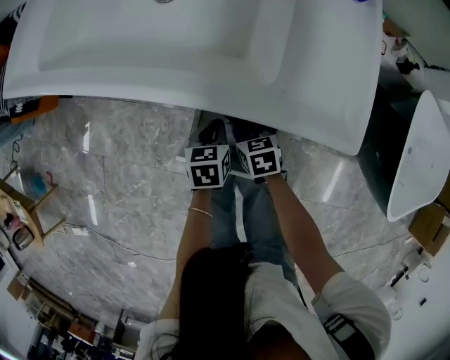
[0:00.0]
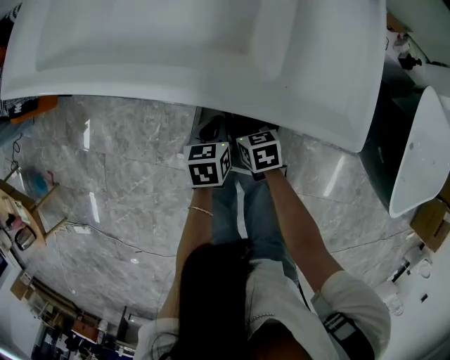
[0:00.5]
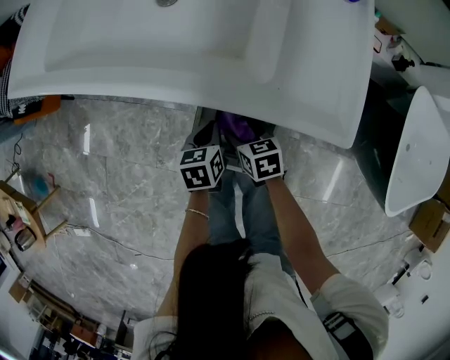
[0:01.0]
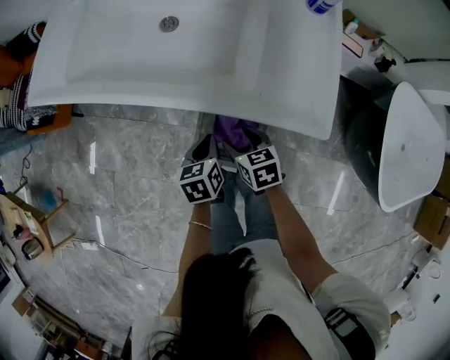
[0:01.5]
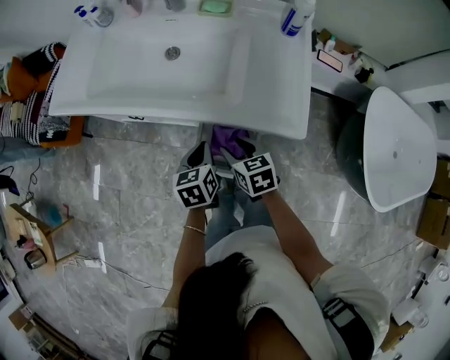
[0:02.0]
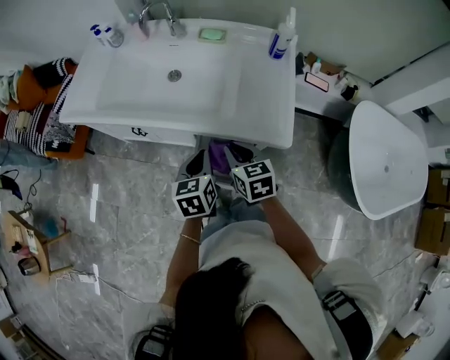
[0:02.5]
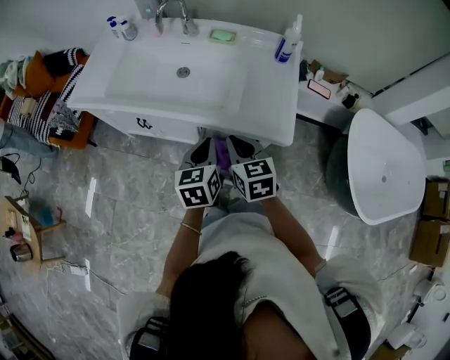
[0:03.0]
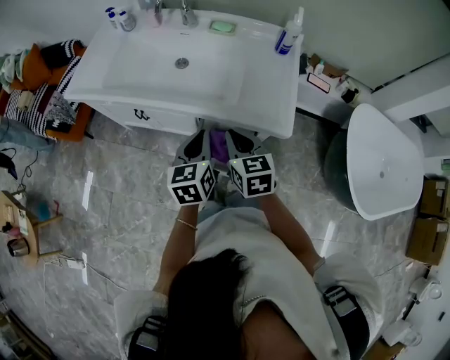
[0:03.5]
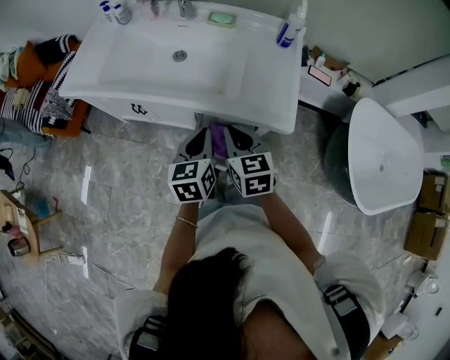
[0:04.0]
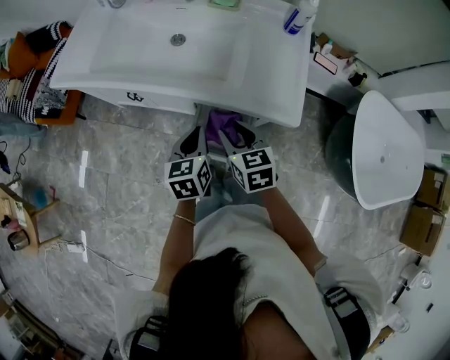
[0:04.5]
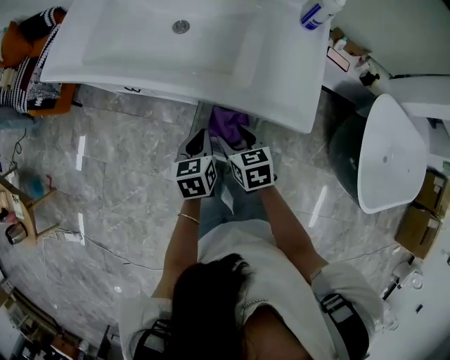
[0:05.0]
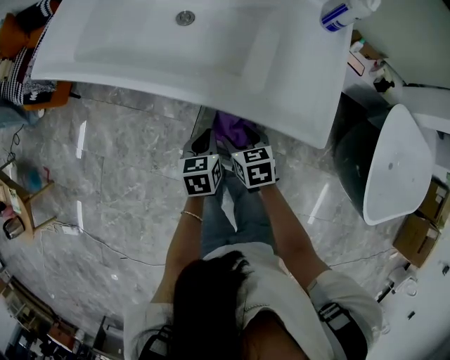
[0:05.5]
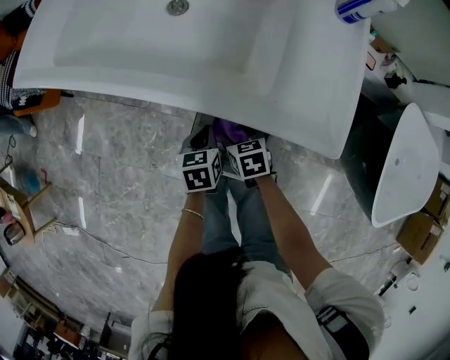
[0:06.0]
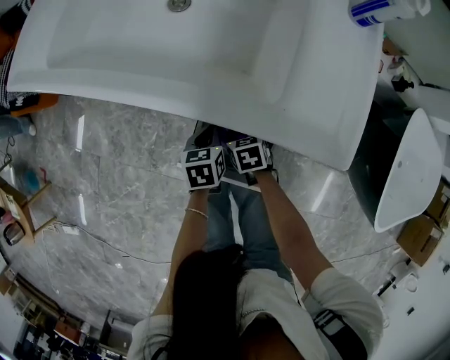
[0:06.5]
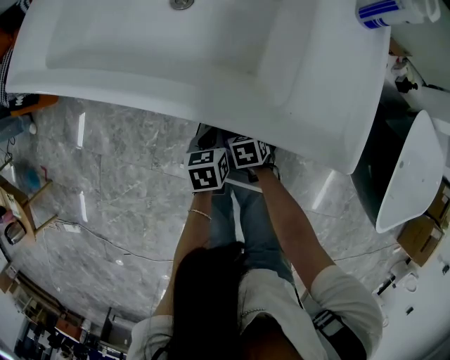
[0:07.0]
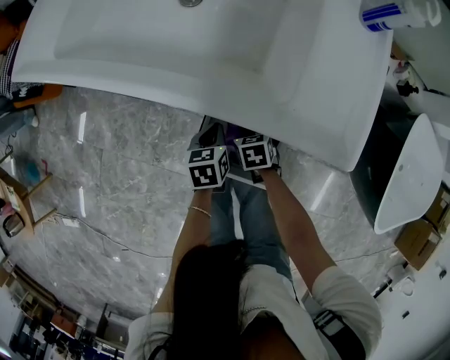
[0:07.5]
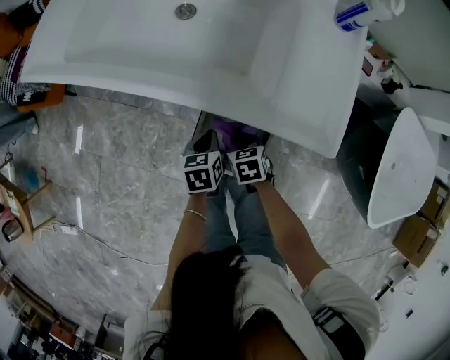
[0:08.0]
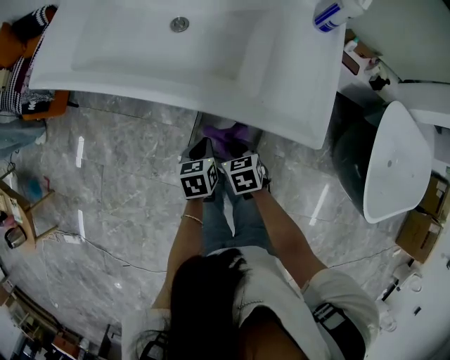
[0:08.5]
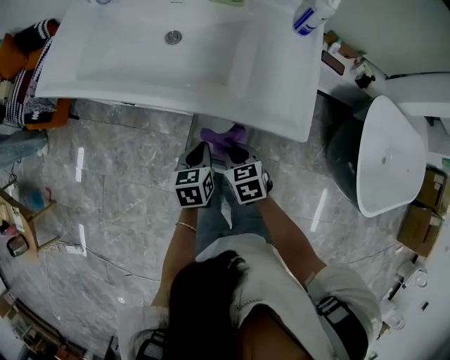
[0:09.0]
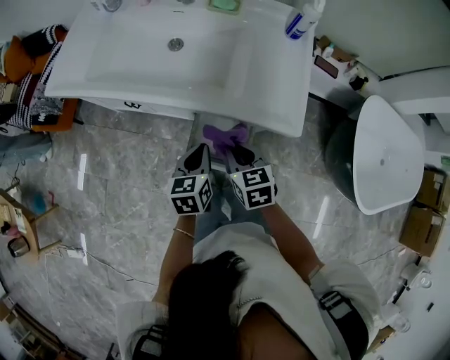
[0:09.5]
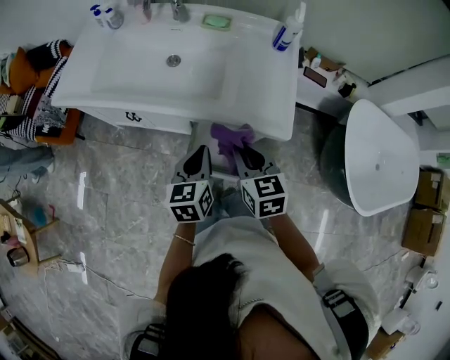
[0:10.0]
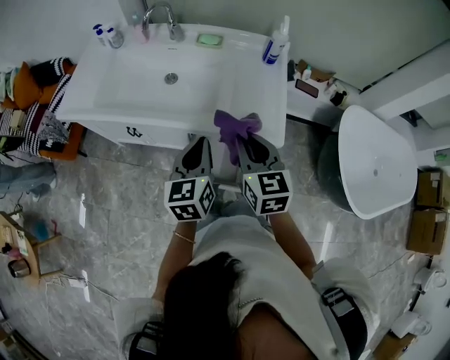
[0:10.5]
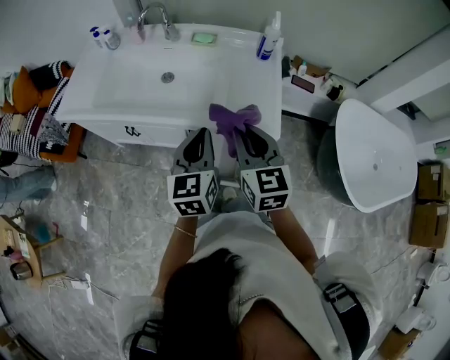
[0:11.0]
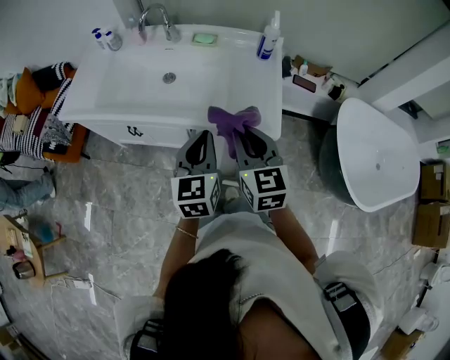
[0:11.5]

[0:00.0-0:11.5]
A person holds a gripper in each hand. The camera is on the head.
0:00.0 to 0:02.0: Both grippers travel together upward, some 20 cm. The right gripper opens up.
0:02.0 to 0:04.0: The grippers both shift upward by roughly 15 cm. The right gripper swivels approximately 20 degrees, and closes.
0:04.0 to 0:06.0: Both grippers travel together downward, some 30 cm. The right gripper rotates roughly 30 degrees, and opens up; the left gripper swivels roughly 30 degrees.
0:06.0 to 0:07.5: The right gripper shifts some 5 cm downward, and closes.
0:07.5 to 0:09.5: Both grippers travel together upward, roughly 25 cm. The right gripper swivels roughly 30 degrees.
0:09.5 to 0:11.5: Both grippers move upward, some 20 cm. The right gripper rotates approximately 30 degrees; the left gripper swivels about 30 degrees.

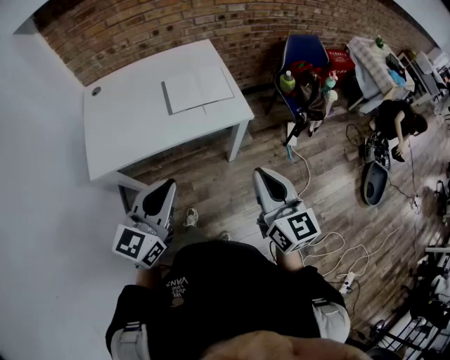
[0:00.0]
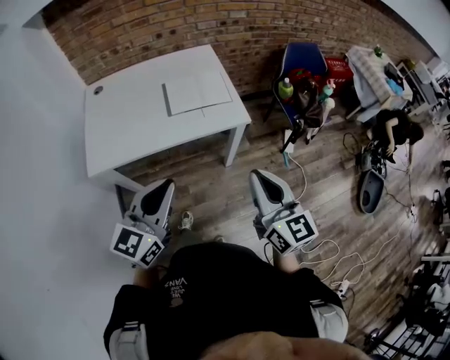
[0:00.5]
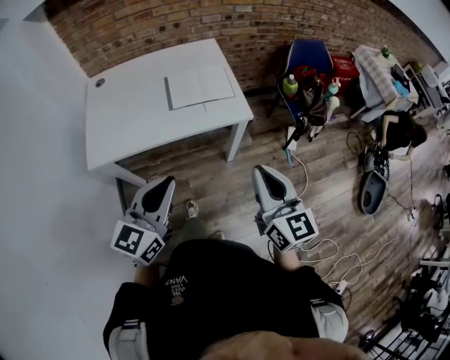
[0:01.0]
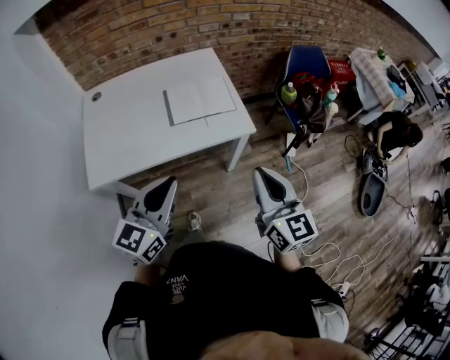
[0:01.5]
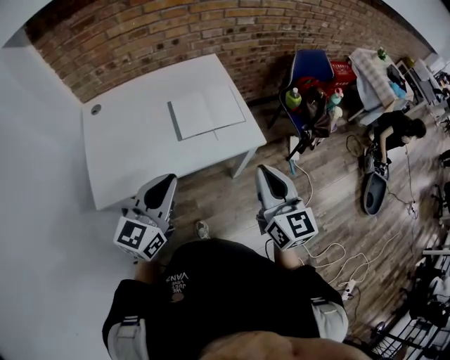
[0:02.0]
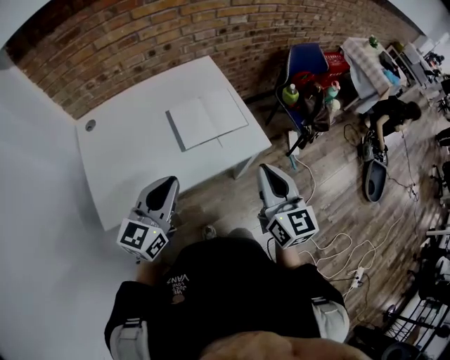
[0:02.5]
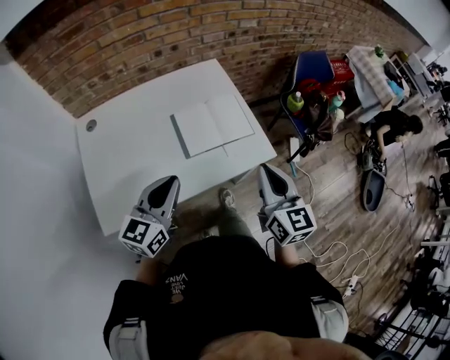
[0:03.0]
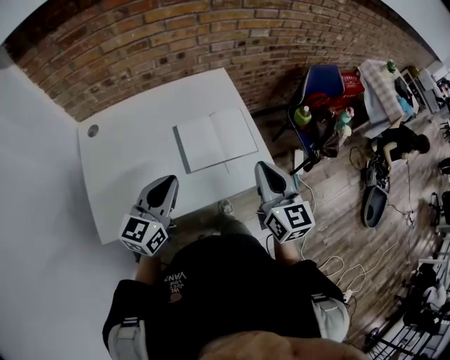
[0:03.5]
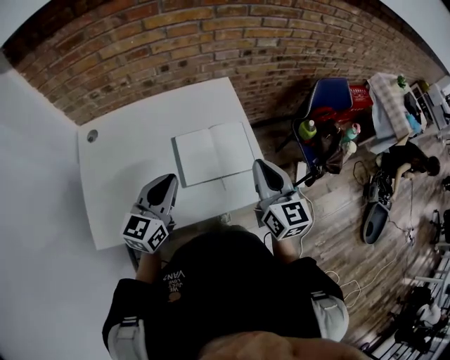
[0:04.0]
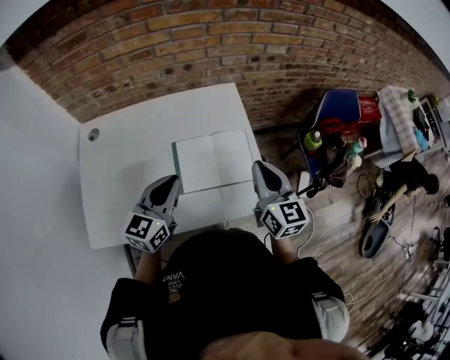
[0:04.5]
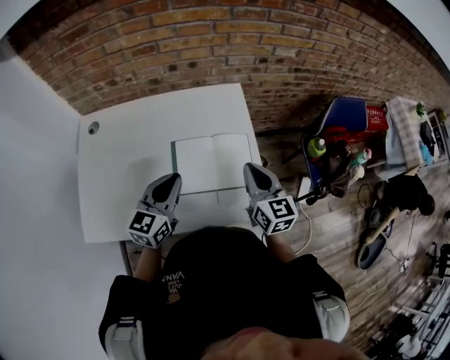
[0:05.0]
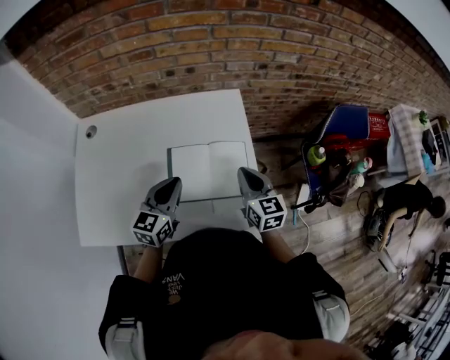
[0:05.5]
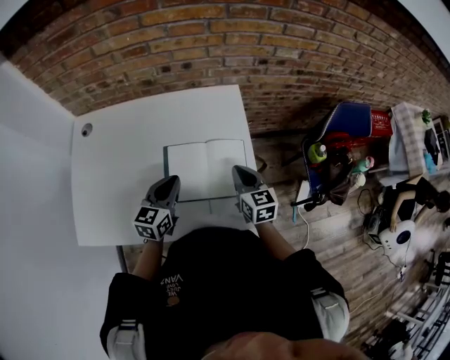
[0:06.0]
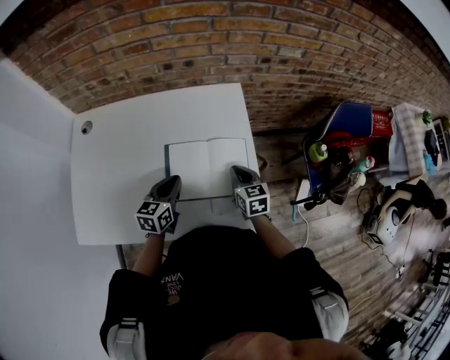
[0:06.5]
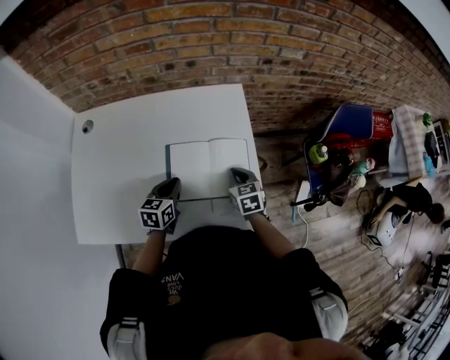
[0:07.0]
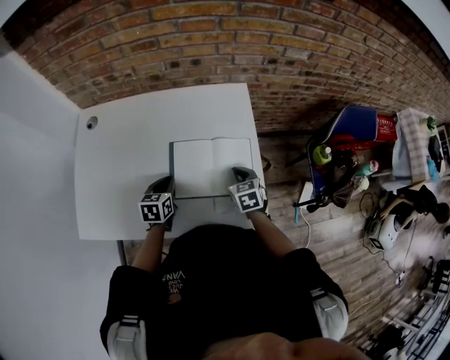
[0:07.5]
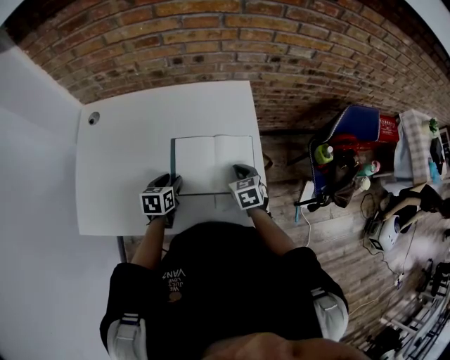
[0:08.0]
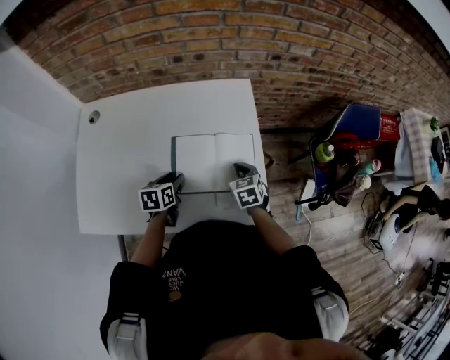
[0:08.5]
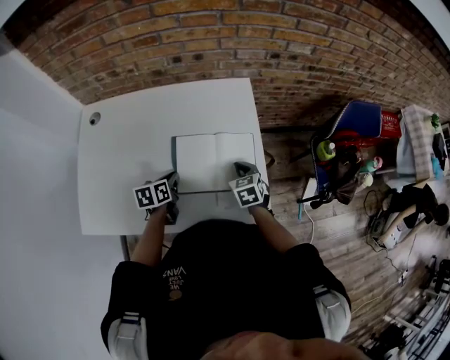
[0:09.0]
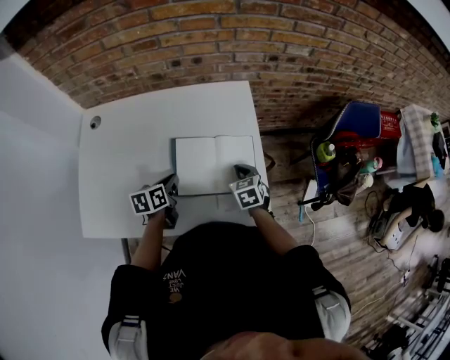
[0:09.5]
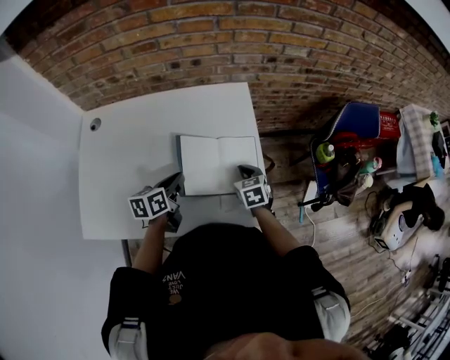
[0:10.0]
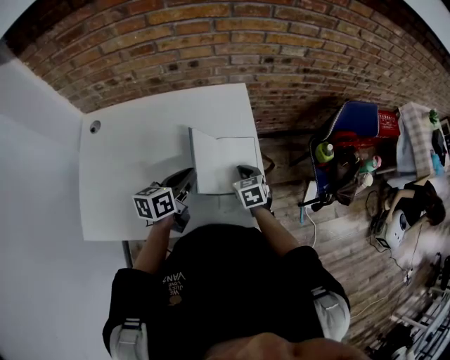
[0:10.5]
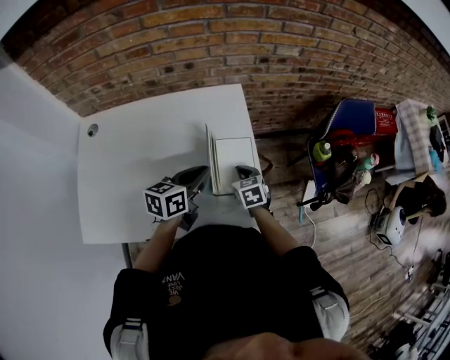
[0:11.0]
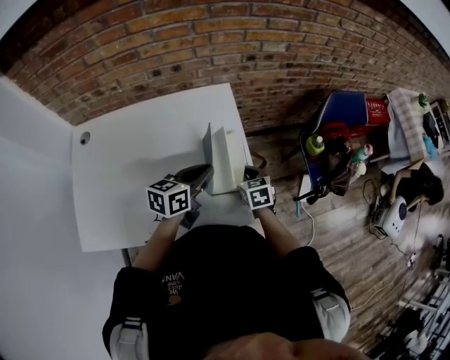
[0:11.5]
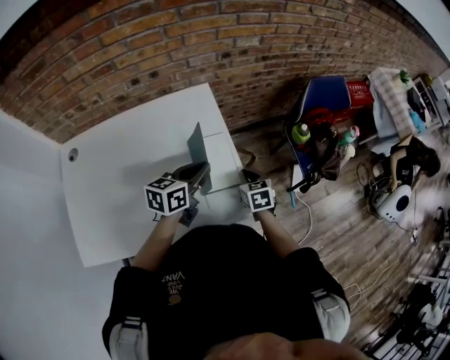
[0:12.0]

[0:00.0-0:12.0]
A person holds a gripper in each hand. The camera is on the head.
0:00.0 to 0:02.0: The grippers both shift forward and to the left by about 15 cm.
0:02.0 to 0:04.0: Both grippers move forward, approximately 25 cm.
0:04.0 to 0:06.0: Both grippers travel together downward and forward, roughly 20 cm. The right gripper swivels approximately 20 degrees.
0:06.0 to 0:08.0: Both grippers travel together downward, about 10 cm. The left gripper turns by approximately 30 degrees, and opens up. Meanwhile the right gripper swivels approximately 20 degrees.
0:08.0 to 0:10.0: The left gripper heads upward, covering roughly 5 cm, swivels some 20 degrees, and closes.
0:10.0 to 0:12.0: The right gripper travels to the right by about 10 cm. The left gripper heads to the right and upward, covering roughly 20 cm, and changes its angle by approximately 30 degrees.

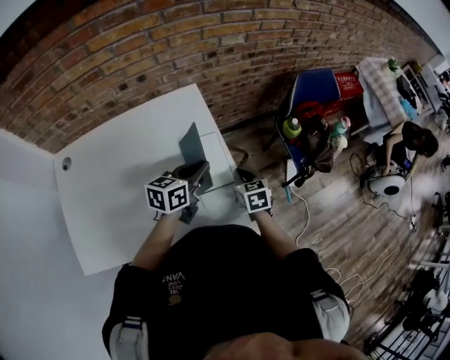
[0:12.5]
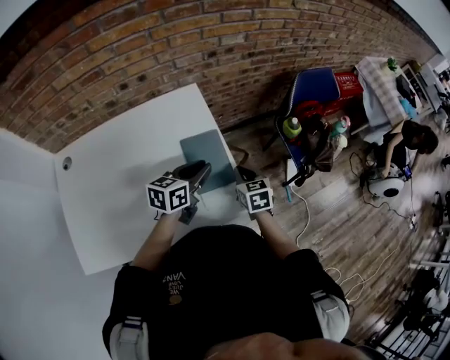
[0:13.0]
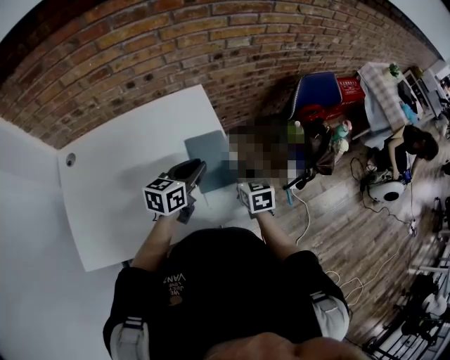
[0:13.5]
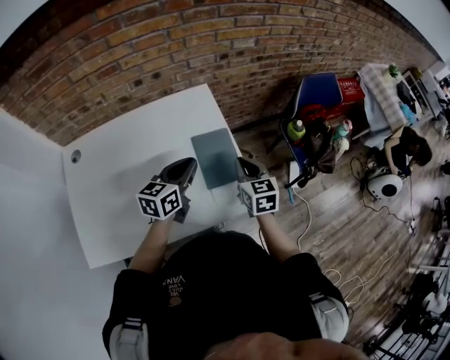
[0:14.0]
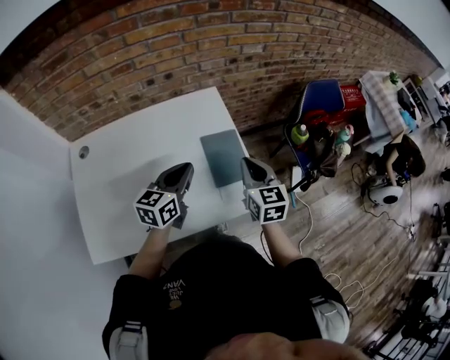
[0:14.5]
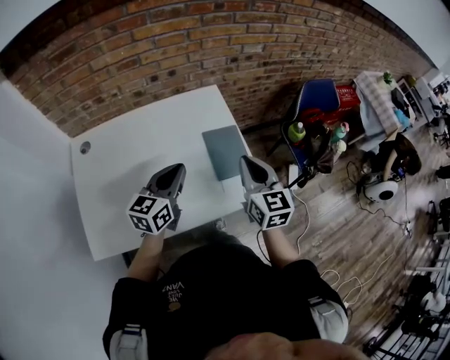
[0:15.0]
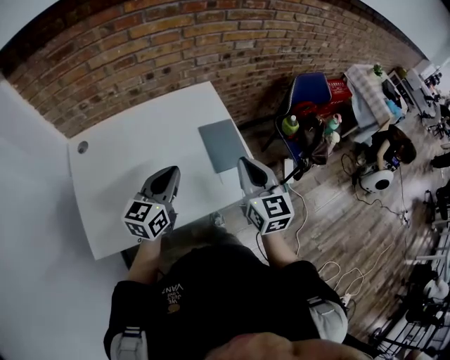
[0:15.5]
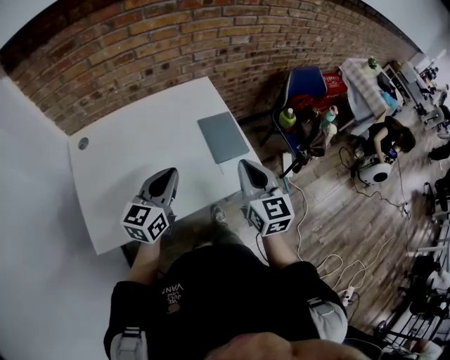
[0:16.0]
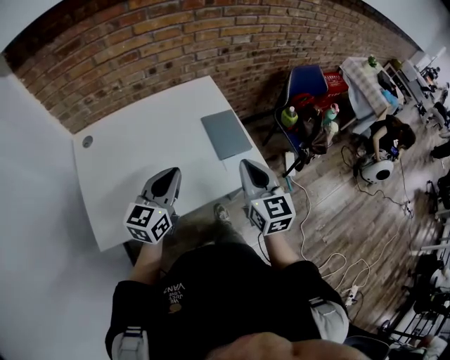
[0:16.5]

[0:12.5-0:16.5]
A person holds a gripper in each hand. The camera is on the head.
0:12.5 to 0:14.5: The left gripper goes approximately 15 cm to the left, backward and upward. The right gripper goes some 15 cm upward, and swivels about 20 degrees.
0:14.5 to 0:16.5: The grippers both shift backward by roughly 15 cm.
